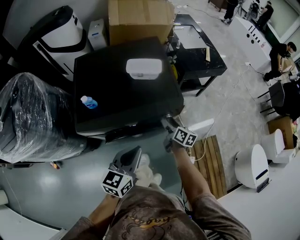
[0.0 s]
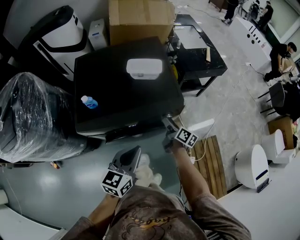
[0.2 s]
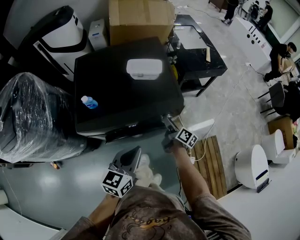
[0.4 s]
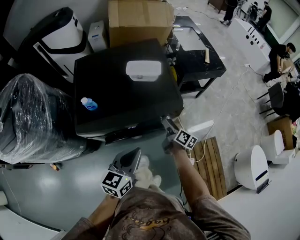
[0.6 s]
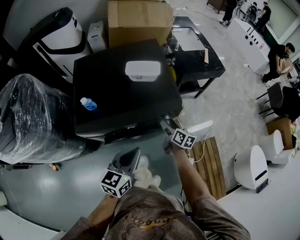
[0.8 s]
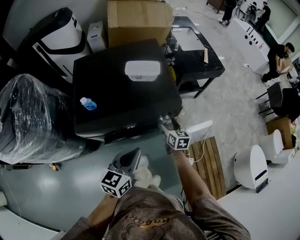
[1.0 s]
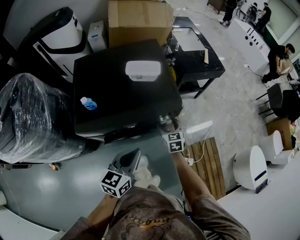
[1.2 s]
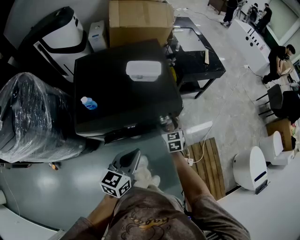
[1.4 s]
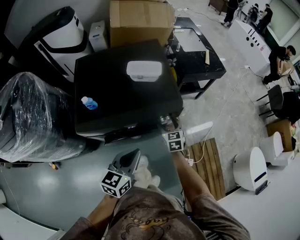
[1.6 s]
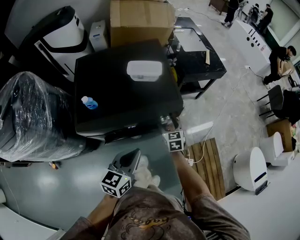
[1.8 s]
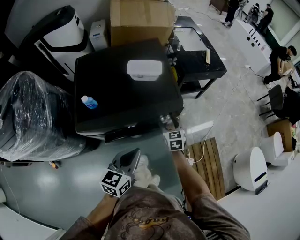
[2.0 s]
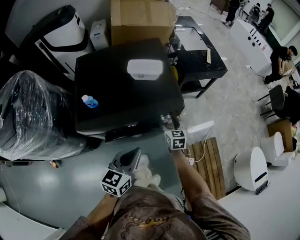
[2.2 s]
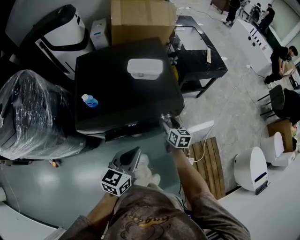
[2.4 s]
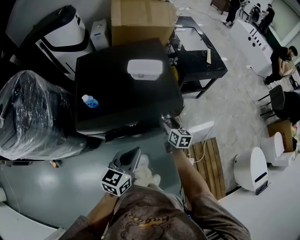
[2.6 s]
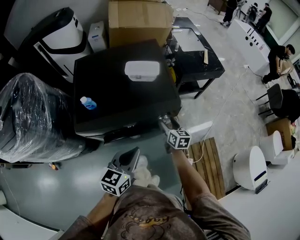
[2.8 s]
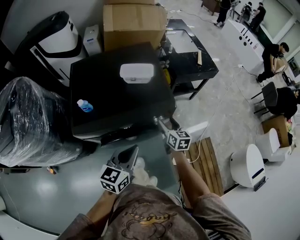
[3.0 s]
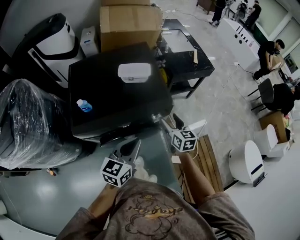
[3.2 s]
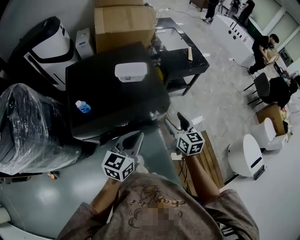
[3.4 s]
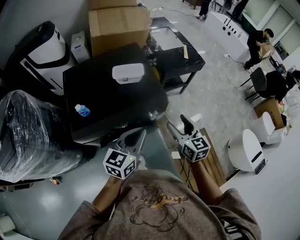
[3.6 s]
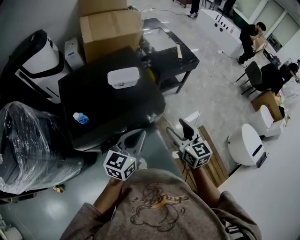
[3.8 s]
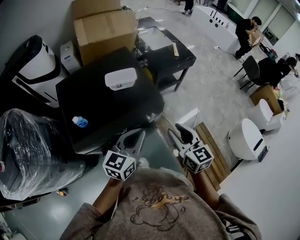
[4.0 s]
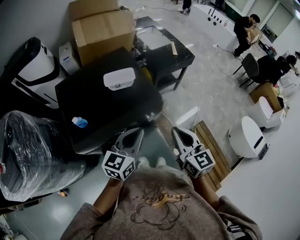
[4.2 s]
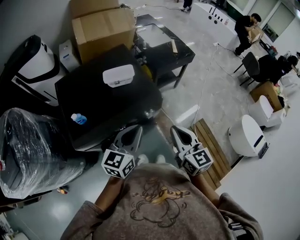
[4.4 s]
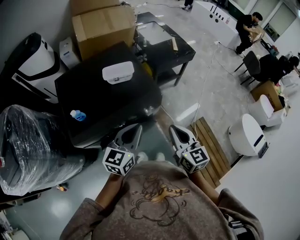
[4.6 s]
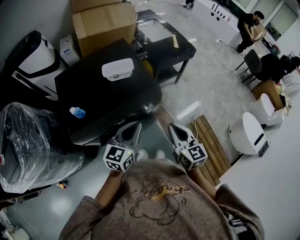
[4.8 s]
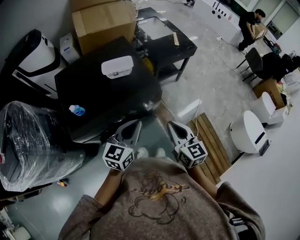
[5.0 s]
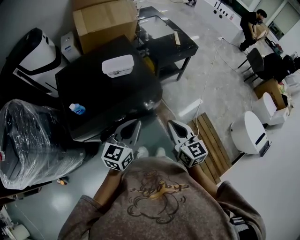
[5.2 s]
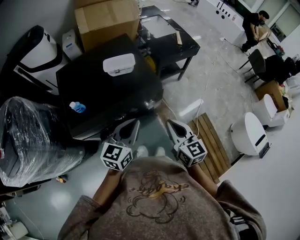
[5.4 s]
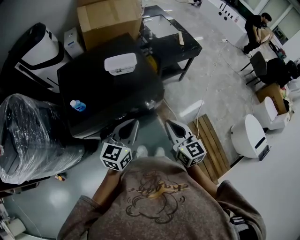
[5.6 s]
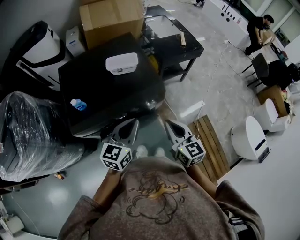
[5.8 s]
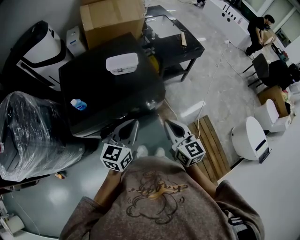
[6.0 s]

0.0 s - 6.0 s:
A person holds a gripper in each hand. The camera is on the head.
0.0 s - 1.6 s: The right gripper rolls counterclockwise, seen from behind, by some 50 degrees.
1.6 s - 3.0 s: The right gripper ends up roughly 5 cm from where it was, and turns by approximately 20 degrees.
3.0 s - 4.4 s: The left gripper is displaced upward and forward by about 10 cm; the right gripper is displaced upward and backward by some 25 cm, rotates some 20 degrees, and closes.
4.4 s - 6.0 s: The right gripper ends up some 5 cm from where it was.

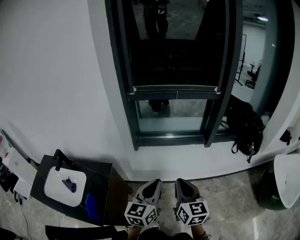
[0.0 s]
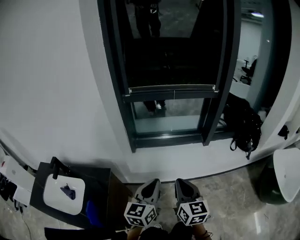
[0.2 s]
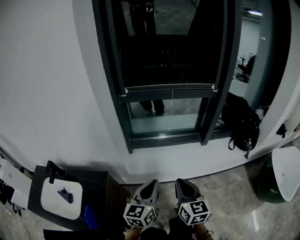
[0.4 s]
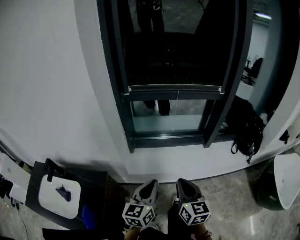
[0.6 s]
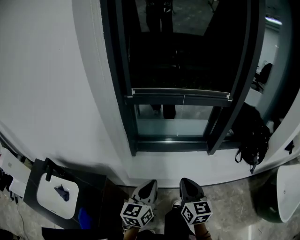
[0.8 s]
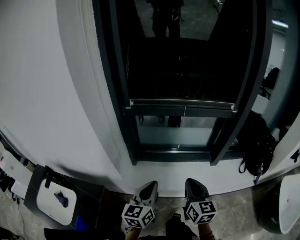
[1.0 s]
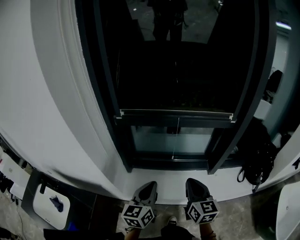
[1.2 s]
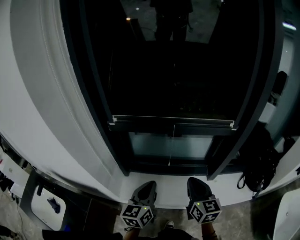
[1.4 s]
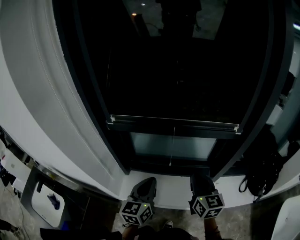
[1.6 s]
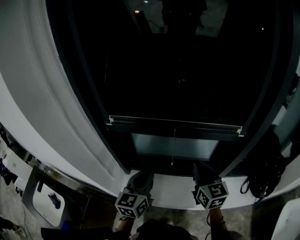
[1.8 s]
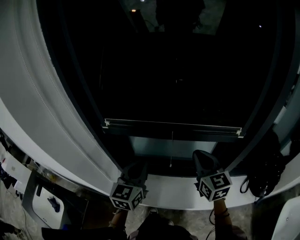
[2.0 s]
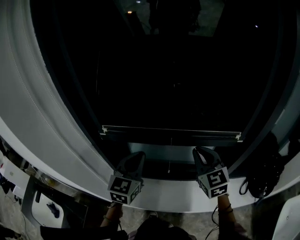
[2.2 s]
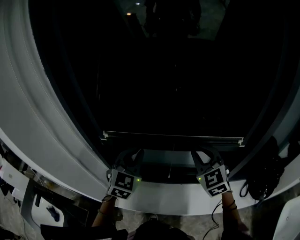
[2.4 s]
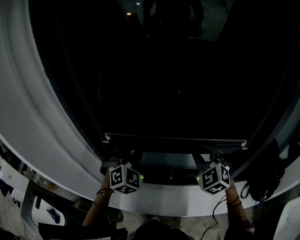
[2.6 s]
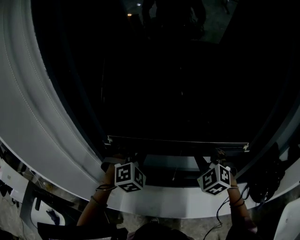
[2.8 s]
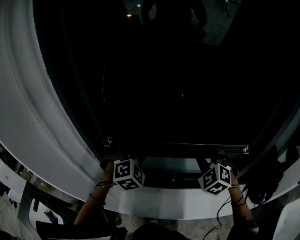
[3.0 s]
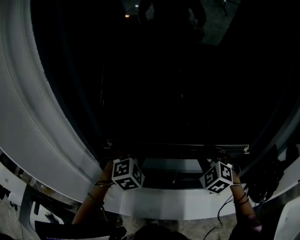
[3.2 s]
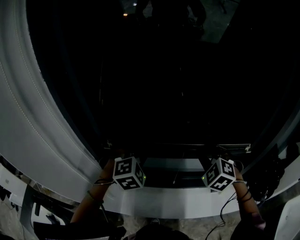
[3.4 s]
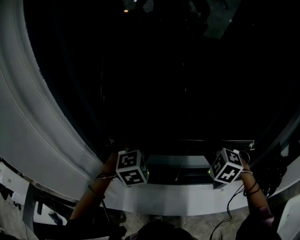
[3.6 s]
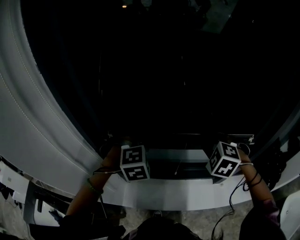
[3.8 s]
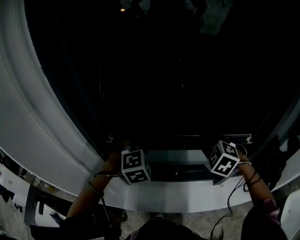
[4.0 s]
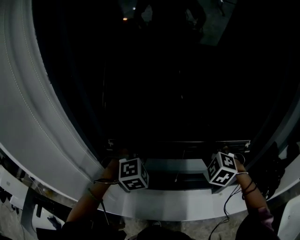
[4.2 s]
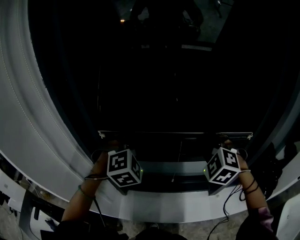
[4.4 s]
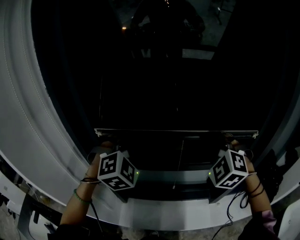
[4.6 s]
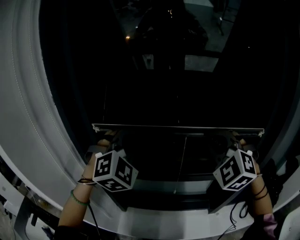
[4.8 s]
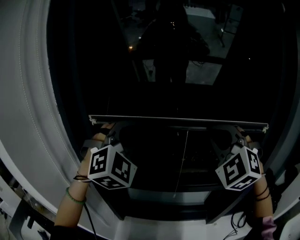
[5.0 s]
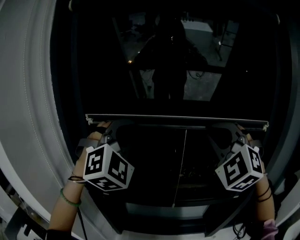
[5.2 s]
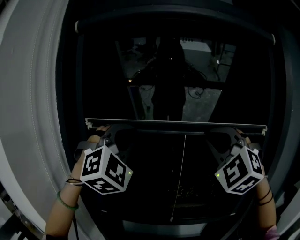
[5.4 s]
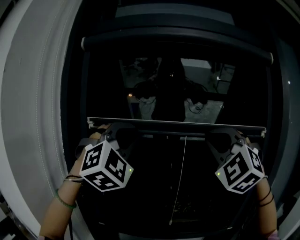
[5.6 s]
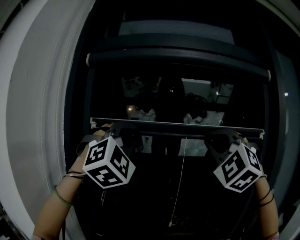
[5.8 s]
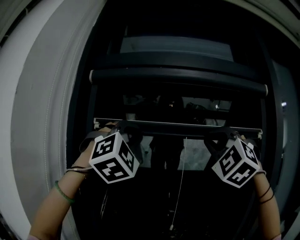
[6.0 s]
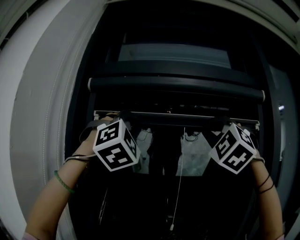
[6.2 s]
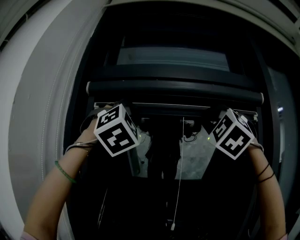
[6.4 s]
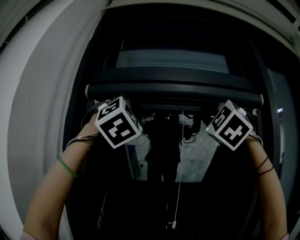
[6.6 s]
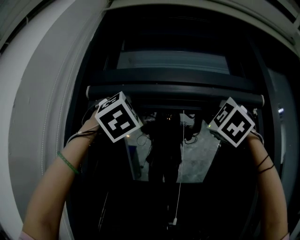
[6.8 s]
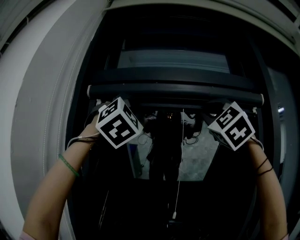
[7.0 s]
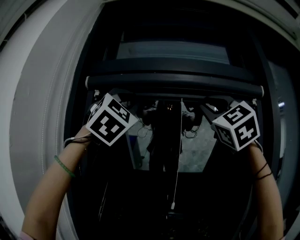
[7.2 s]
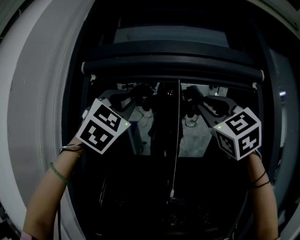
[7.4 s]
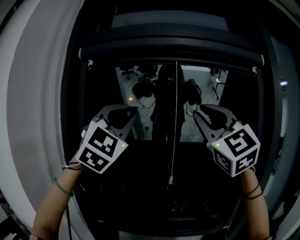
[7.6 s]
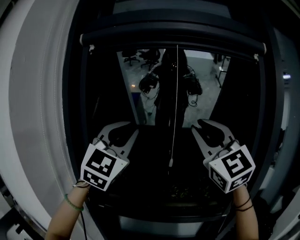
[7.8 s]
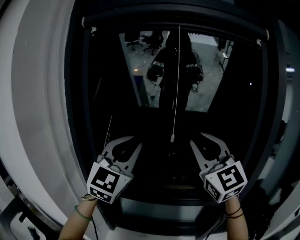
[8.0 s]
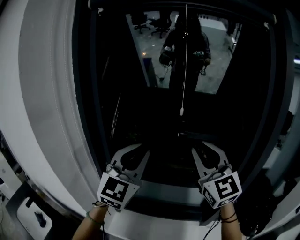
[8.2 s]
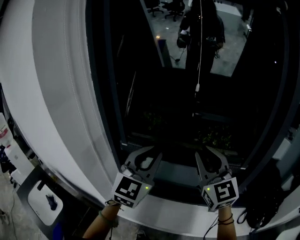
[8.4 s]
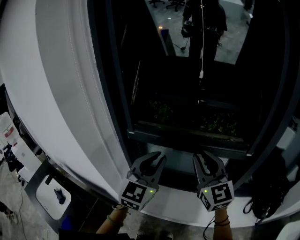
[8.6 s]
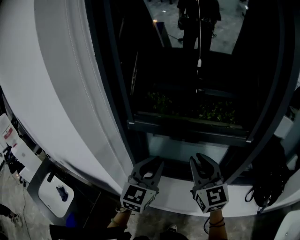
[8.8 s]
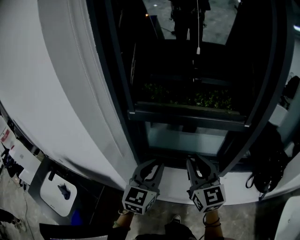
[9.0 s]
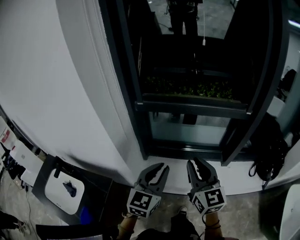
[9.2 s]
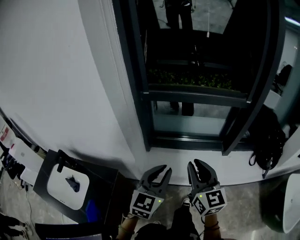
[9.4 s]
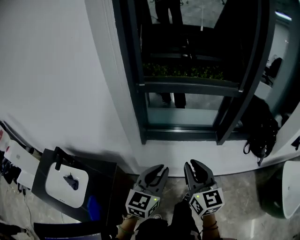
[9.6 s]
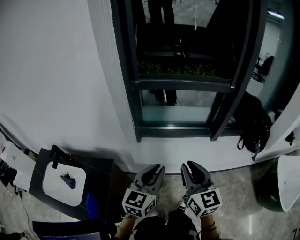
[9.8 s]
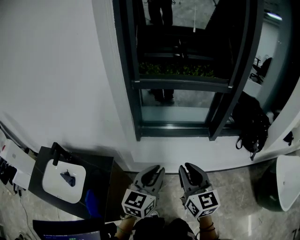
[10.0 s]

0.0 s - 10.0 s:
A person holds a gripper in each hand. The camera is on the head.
0.0 s - 1.4 s: The two grippers go about 35 cm forward.
1.4 s - 2.8 s: Both grippers travel together forward, approximately 25 cm. The left gripper rolls clockwise, seen from behind, by approximately 80 degrees. The right gripper rotates around the line of its fingers by about 60 degrees, counterclockwise from behind.
4.2 s - 5.8 s: Both grippers travel together upward, some 50 cm. The right gripper angles its fingers upward, by about 50 degrees. Meanwhile the left gripper tips its fingers upward by roughly 40 degrees.
5.8 s - 7.2 s: The grippers both shift upward by approximately 20 cm. The right gripper swivels roughly 30 degrees.
7.2 s - 8.6 s: The grippers both shift downward by about 60 cm. The left gripper twists roughly 50 degrees counterclockwise, seen from behind. Meanwhile the right gripper twists approximately 50 degrees clockwise, seen from behind.
8.6 s - 10.0 s: The right gripper travels backward by roughly 40 cm, and rotates about 30 degrees, while the left gripper moves backward and downward, approximately 40 cm, and changes its angle by approximately 30 degrees.

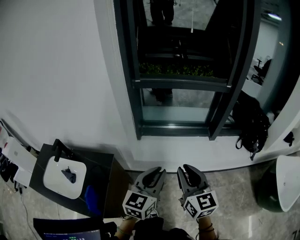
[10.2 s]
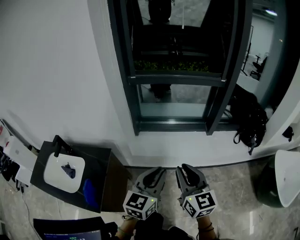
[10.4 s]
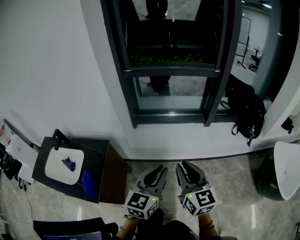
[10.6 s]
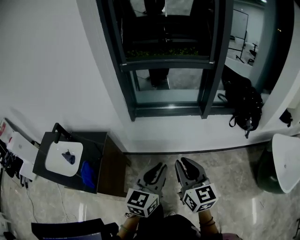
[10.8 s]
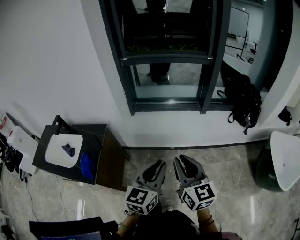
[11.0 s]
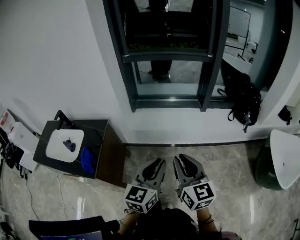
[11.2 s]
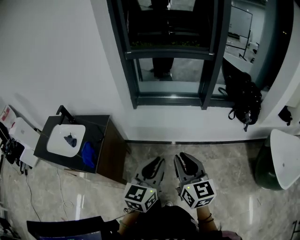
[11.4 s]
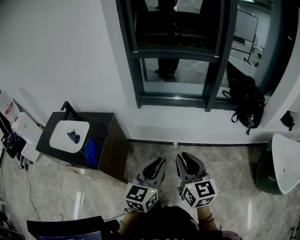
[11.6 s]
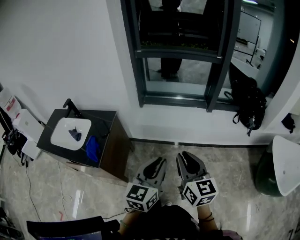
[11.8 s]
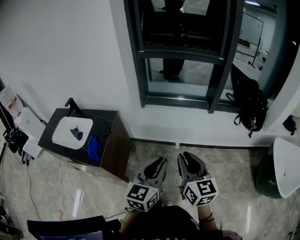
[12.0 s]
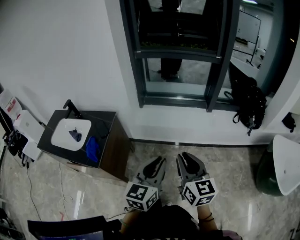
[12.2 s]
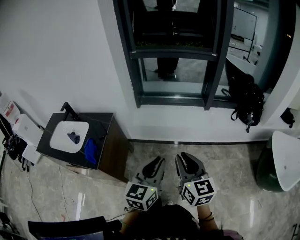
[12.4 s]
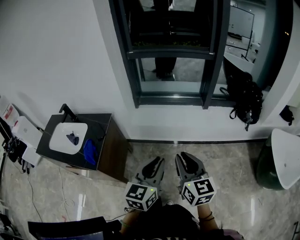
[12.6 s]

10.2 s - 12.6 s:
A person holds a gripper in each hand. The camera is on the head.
10.2 s - 11.4 s: The grippers both shift backward and to the right by some 25 cm.
11.4 s - 12.6 s: The grippers move only a little.

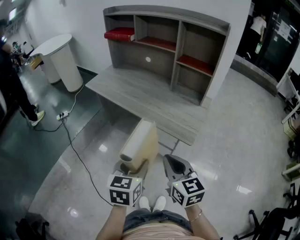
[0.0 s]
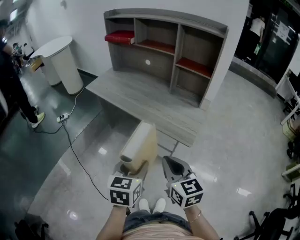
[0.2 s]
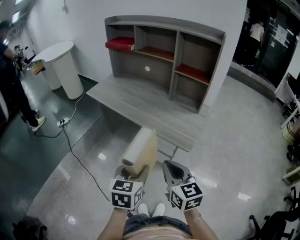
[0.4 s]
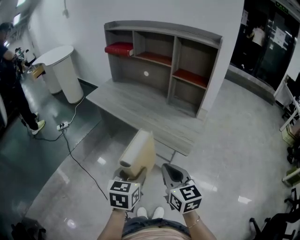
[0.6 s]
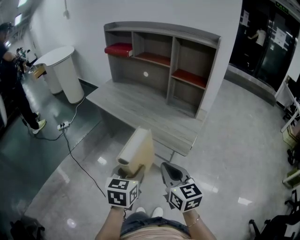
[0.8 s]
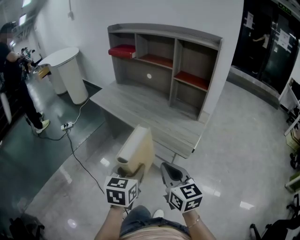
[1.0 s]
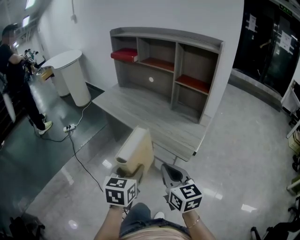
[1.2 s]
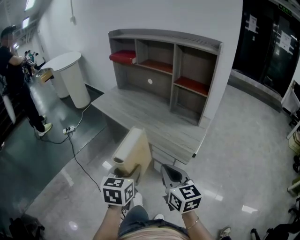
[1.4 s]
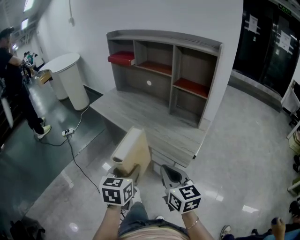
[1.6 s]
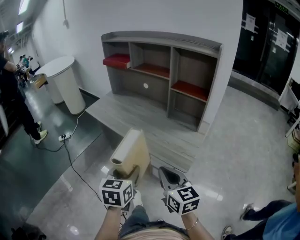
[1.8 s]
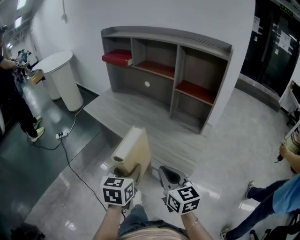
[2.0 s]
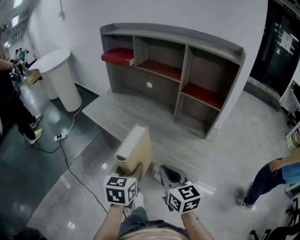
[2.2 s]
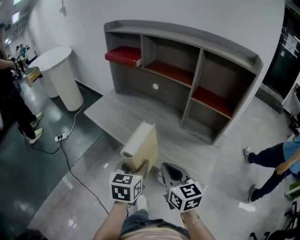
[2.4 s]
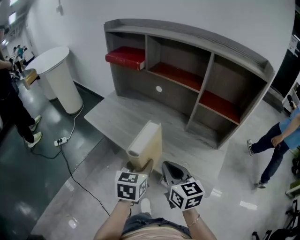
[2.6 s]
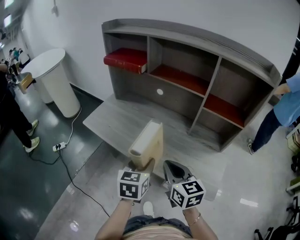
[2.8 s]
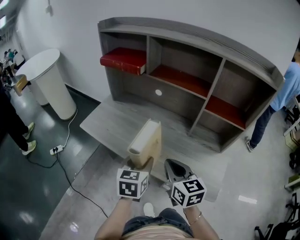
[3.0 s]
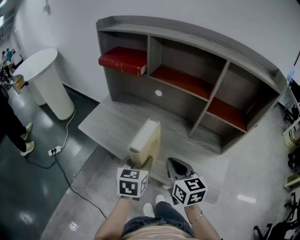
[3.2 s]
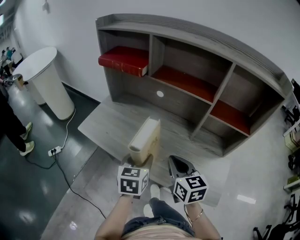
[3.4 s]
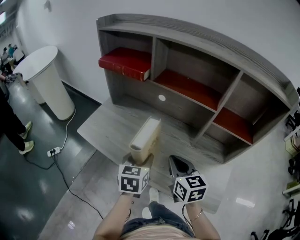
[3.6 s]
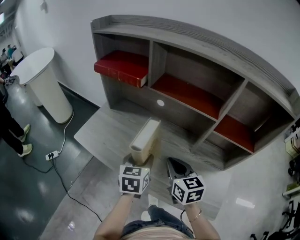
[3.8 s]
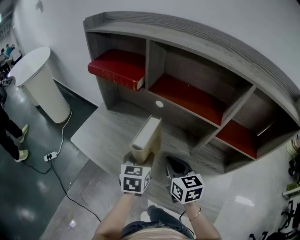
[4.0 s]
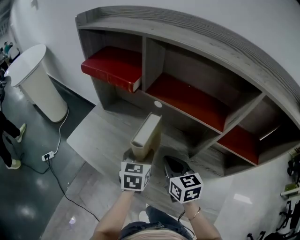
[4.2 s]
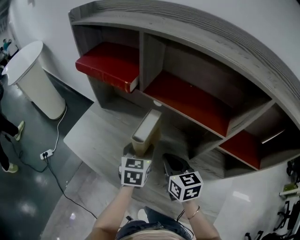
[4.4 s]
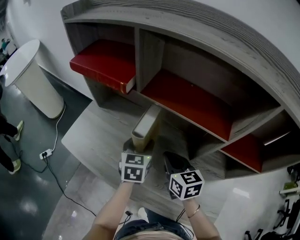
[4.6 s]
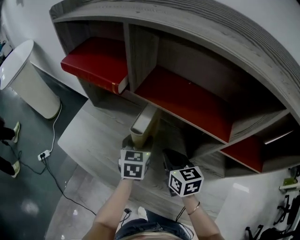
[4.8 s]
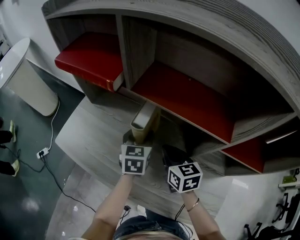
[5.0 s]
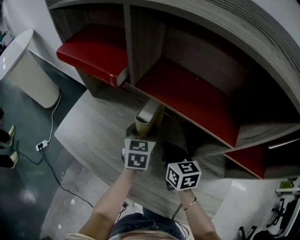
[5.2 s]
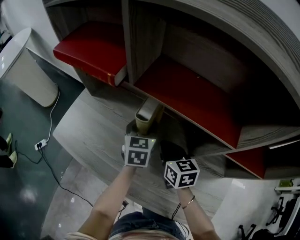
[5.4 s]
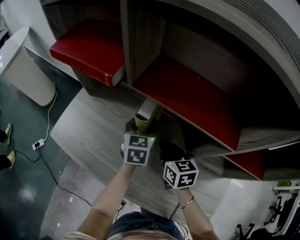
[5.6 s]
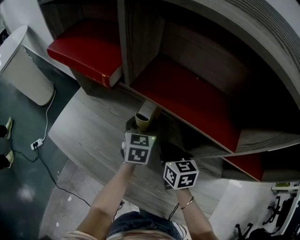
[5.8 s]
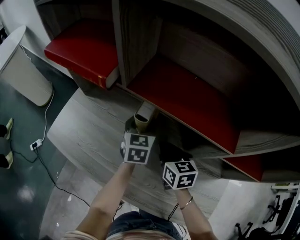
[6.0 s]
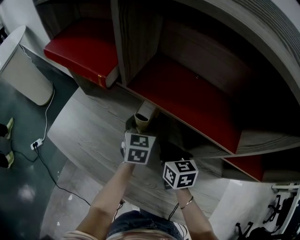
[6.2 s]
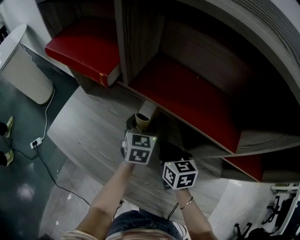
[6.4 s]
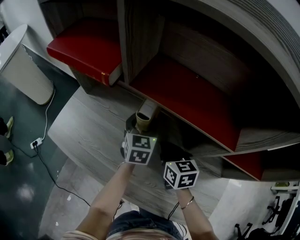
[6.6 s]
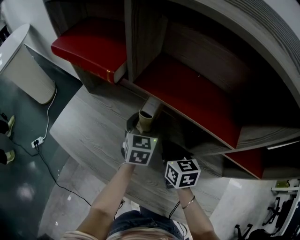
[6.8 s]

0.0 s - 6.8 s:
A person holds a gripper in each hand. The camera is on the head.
0.0 s - 1.4 s: The grippers make only small movements.
1.4 s - 2.8 s: Both grippers travel together forward, roughly 30 cm.
2.8 s - 4.0 s: Both grippers travel together forward, approximately 20 cm.
4.0 s - 5.4 s: The left gripper heads forward, covering about 15 cm. Meanwhile the right gripper goes roughly 15 cm forward and downward.
5.4 s - 6.8 s: There are only small adjustments of the grippers.
